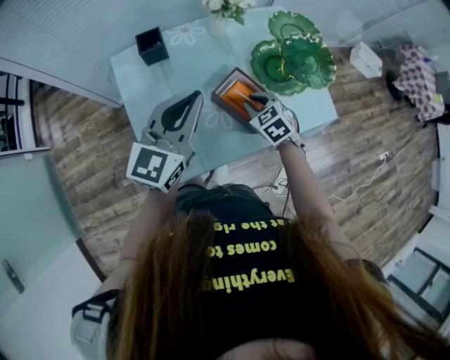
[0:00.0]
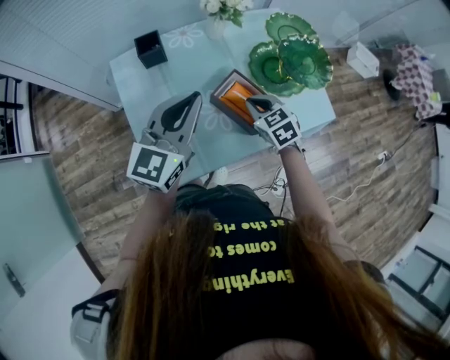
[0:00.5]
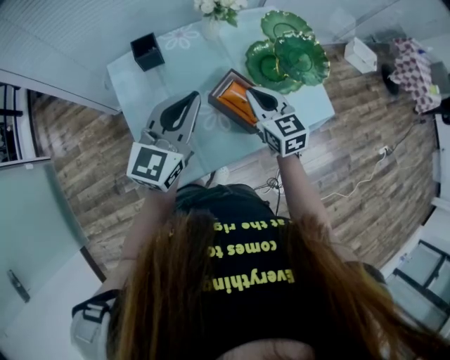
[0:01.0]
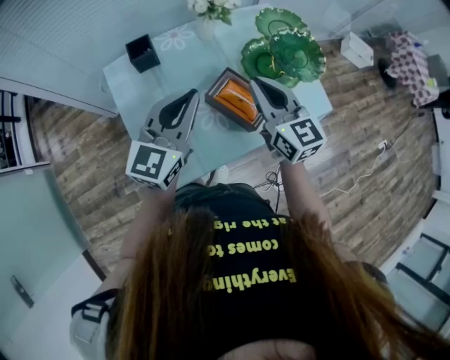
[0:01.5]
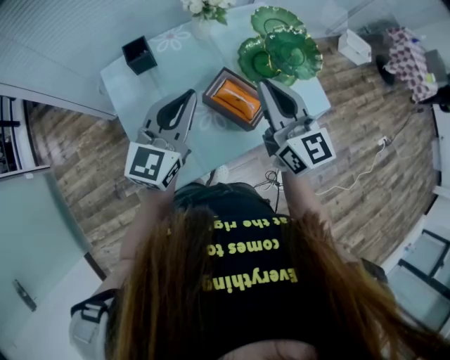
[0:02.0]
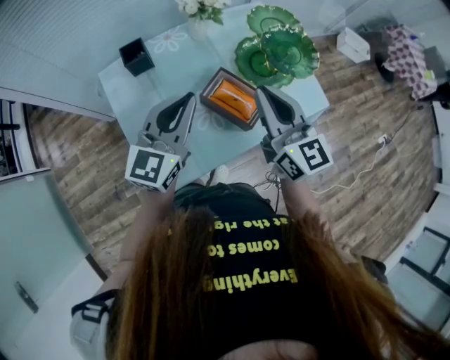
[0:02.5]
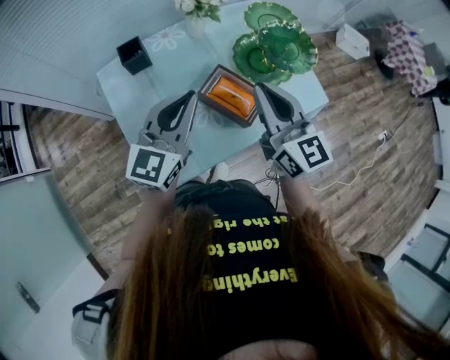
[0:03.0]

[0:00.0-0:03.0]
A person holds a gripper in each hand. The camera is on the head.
0:00.0 to 0:01.5: The right gripper is displaced upward by approximately 20 cm, and angles its fingers upward, by some 40 degrees.
0:01.5 to 0:03.0: The right gripper changes place by roughly 5 cm.

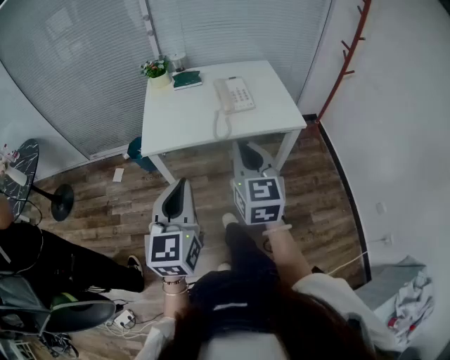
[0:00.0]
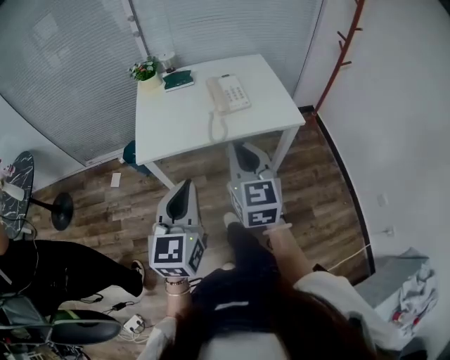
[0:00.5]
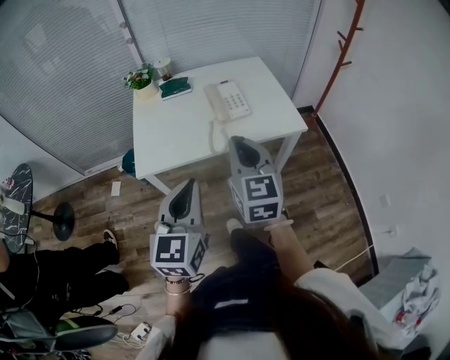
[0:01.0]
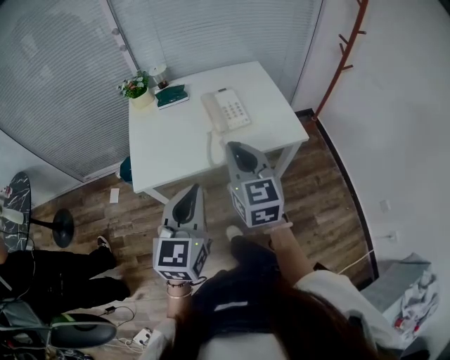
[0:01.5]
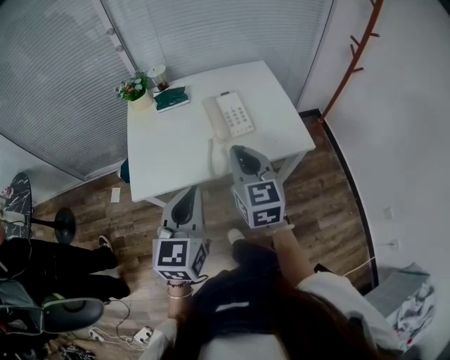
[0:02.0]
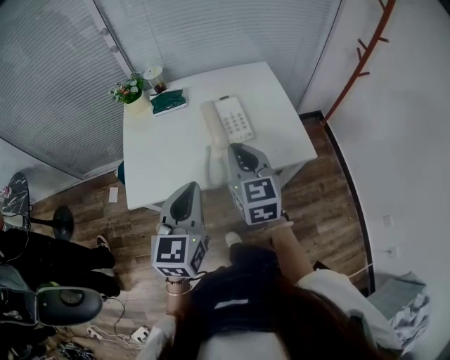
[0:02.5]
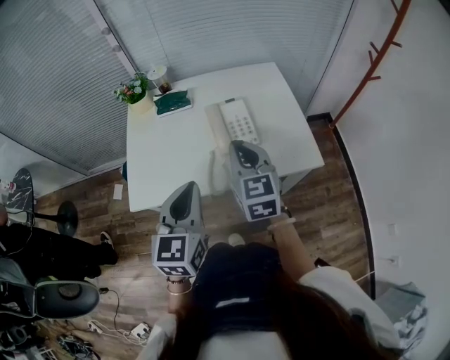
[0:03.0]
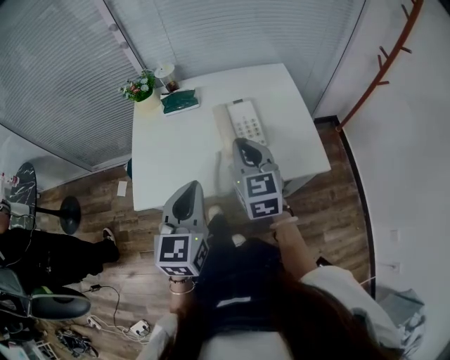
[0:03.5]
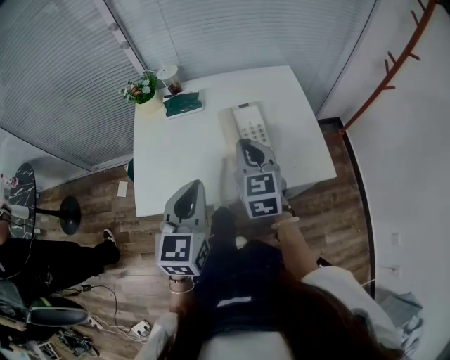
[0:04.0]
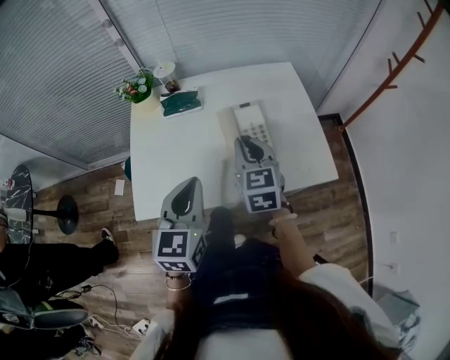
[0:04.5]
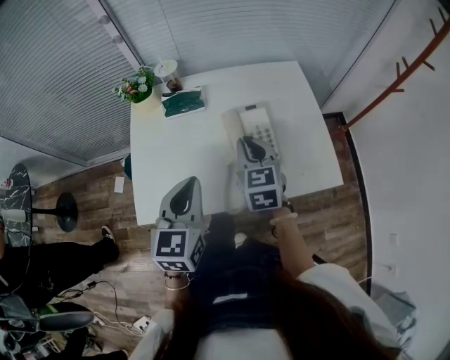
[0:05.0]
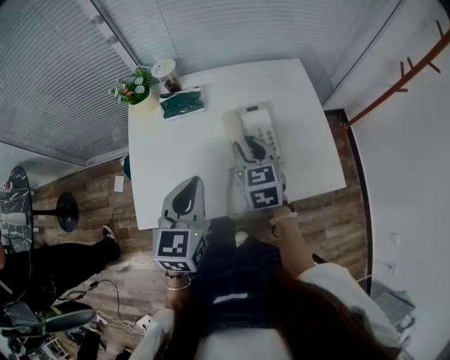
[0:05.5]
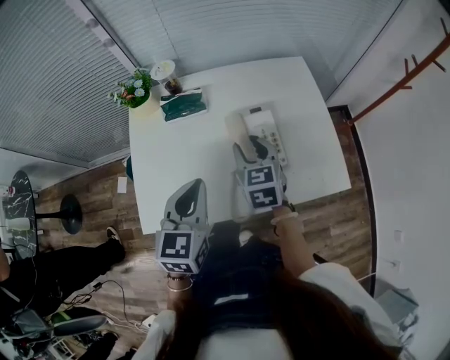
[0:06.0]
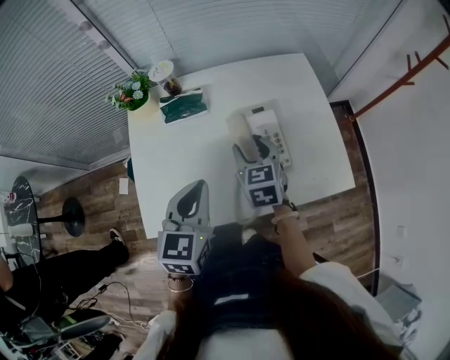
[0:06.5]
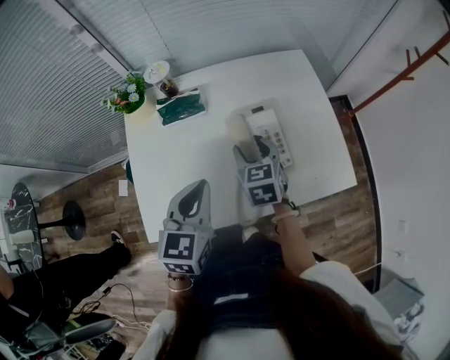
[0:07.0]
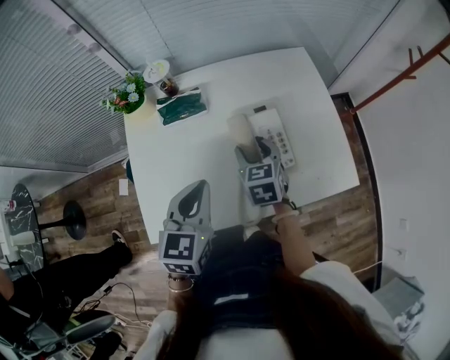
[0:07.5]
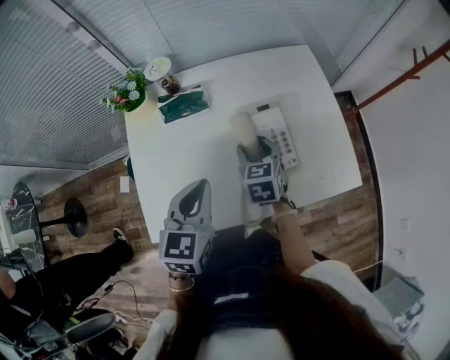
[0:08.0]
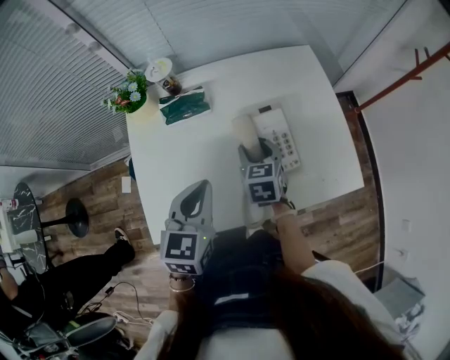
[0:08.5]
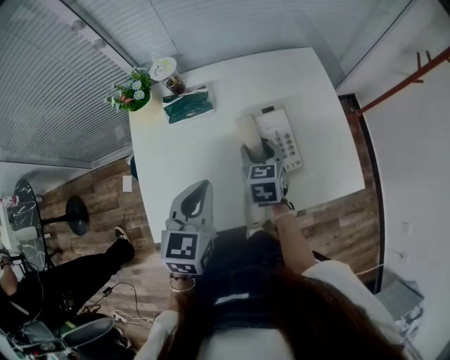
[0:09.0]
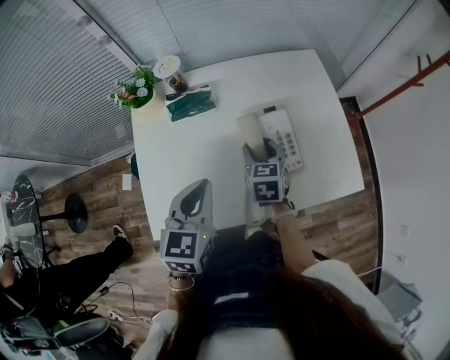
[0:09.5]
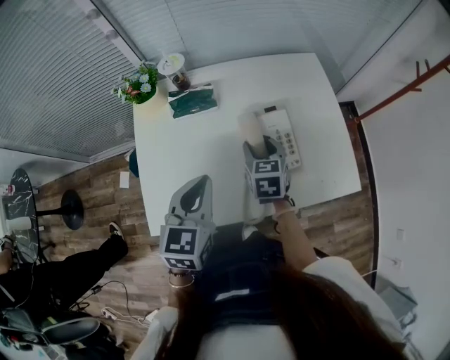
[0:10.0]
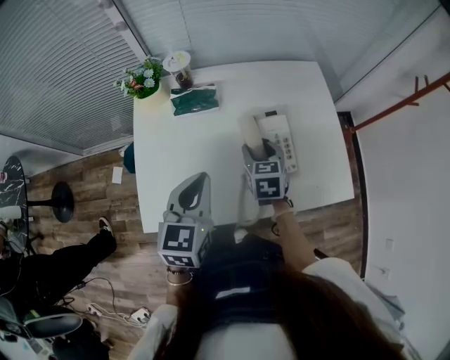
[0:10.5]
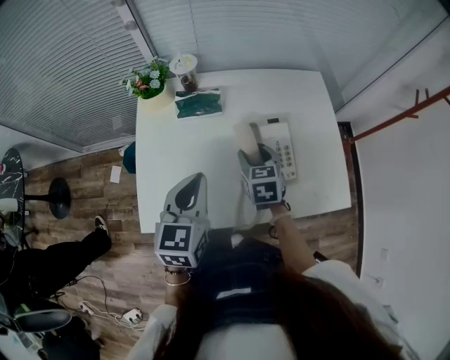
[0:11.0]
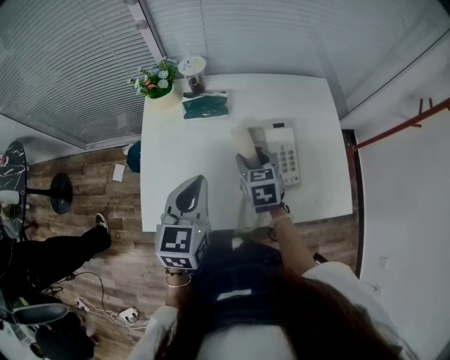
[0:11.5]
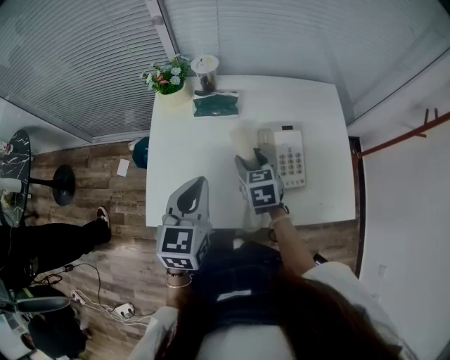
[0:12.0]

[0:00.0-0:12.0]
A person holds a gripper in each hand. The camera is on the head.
0:00.0 to 0:02.0: Both grippers travel together forward, approximately 20 cm.
0:02.0 to 0:04.0: The two grippers go some 15 cm forward.
0:04.0 to 0:06.0: The left gripper shifts about 10 cm forward. Meanwhile the right gripper shifts roughly 15 cm forward and downward, and opens up.
0:06.0 to 0:08.0: The right gripper is displaced downward by roughly 5 cm.
0:08.0 to 0:10.0: The grippers stay close to where they were, moving slightly.
0:10.0 to 0:12.0: The right gripper travels to the left by about 5 cm.

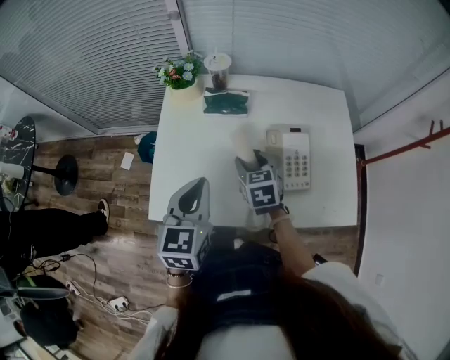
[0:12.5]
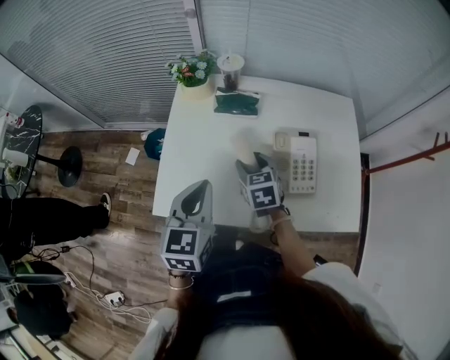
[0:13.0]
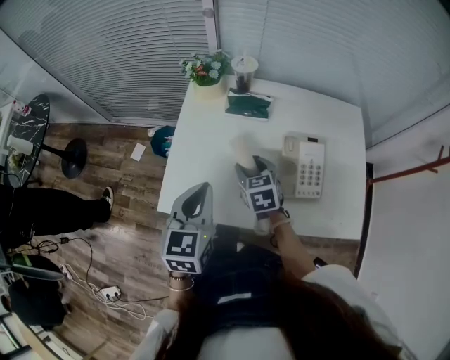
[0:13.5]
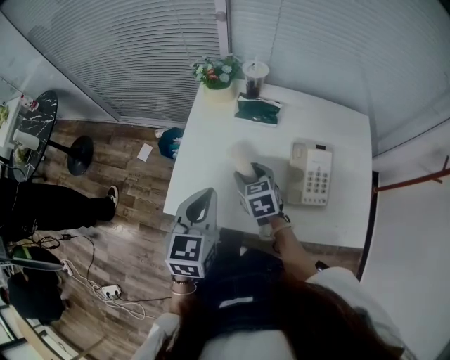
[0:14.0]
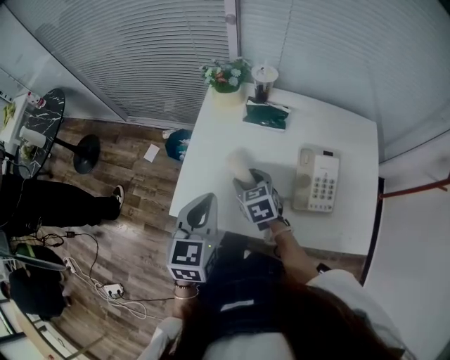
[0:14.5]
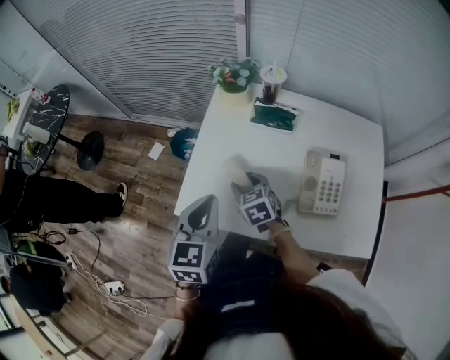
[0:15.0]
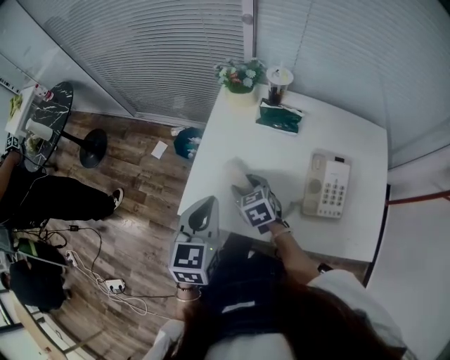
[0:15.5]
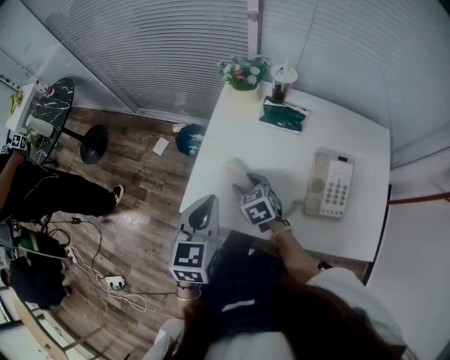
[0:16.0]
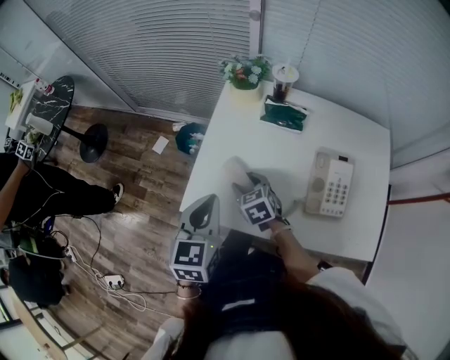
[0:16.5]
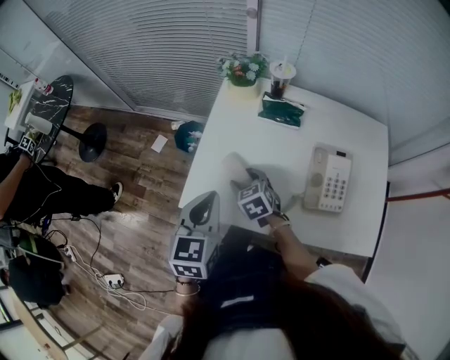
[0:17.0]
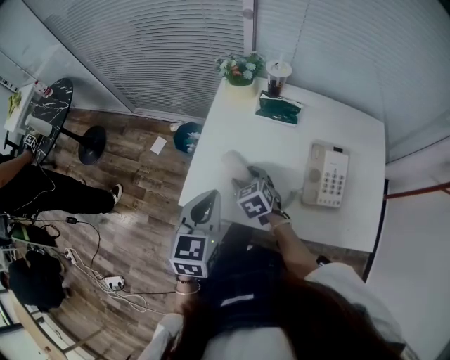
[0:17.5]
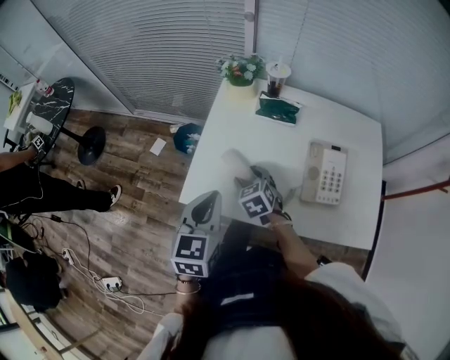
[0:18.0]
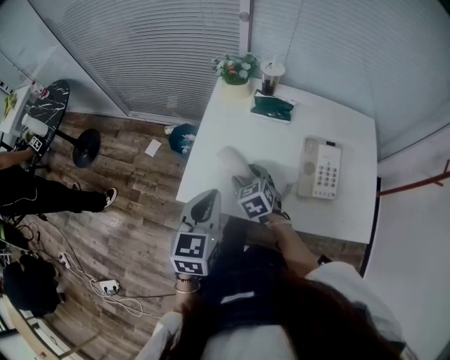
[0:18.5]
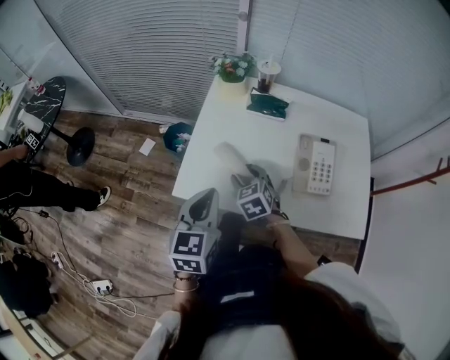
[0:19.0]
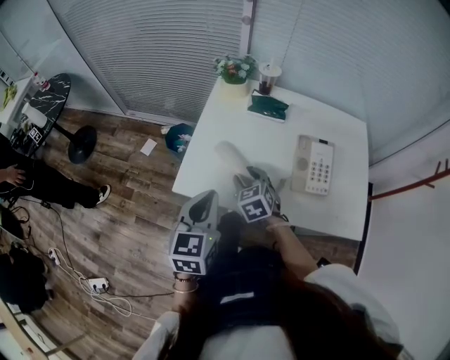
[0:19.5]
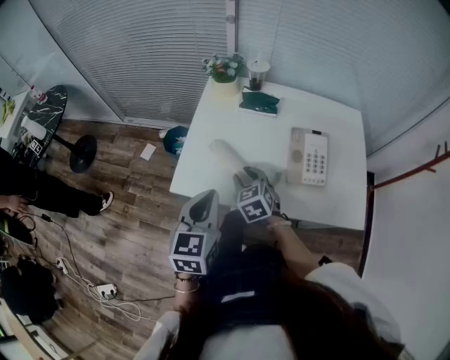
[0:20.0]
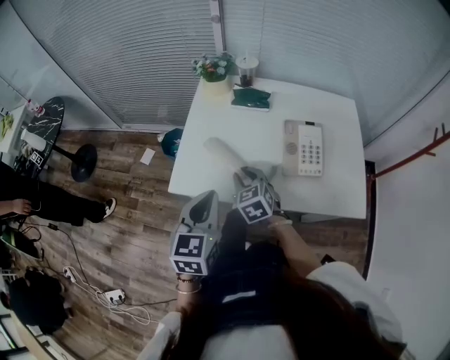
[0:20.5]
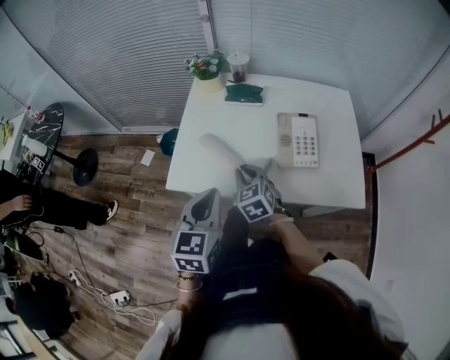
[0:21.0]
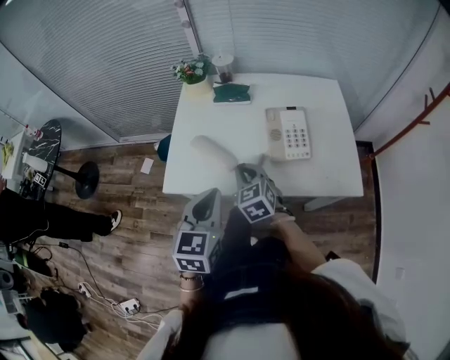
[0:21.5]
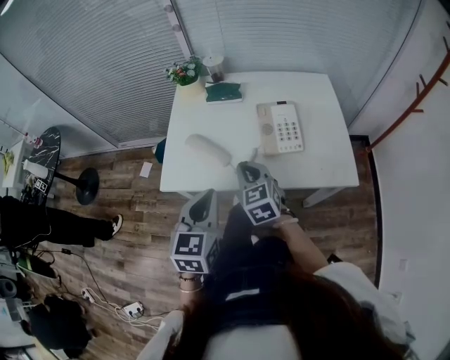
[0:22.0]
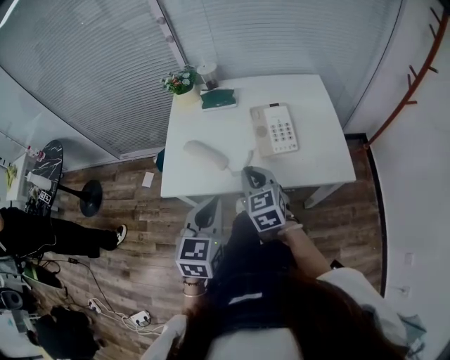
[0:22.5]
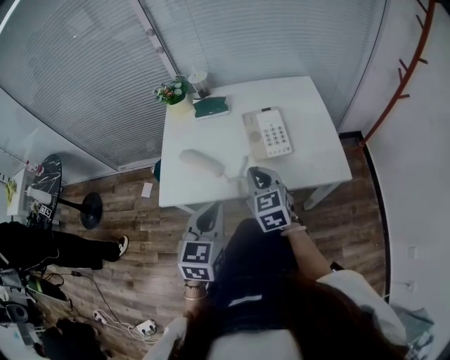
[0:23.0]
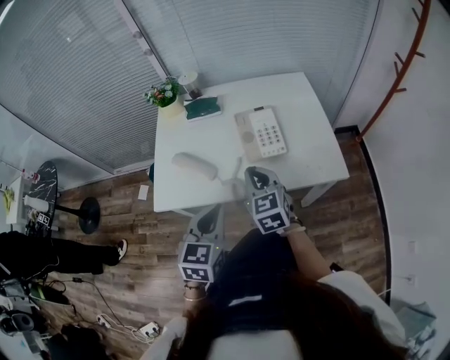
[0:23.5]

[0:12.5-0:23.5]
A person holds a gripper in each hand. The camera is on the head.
0:12.5 to 0:14.5: The left gripper is displaced to the left by approximately 5 cm, while the right gripper shifts some 10 cm to the left.
0:14.5 to 0:16.0: The right gripper travels to the left by about 5 cm.
0:16.0 to 0:18.0: The grippers make only small movements.
0:18.0 to 0:20.0: Both grippers travel together backward, about 5 cm. The right gripper closes.
0:20.0 to 0:21.5: Both grippers travel together to the right, roughly 5 cm. The right gripper closes up.
0:21.5 to 0:23.5: The left gripper shifts about 5 cm to the right; the right gripper heads to the right and upward, covering roughly 10 cm.

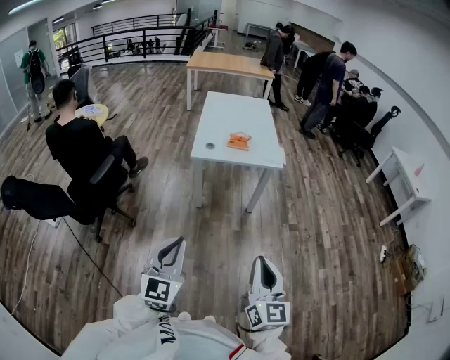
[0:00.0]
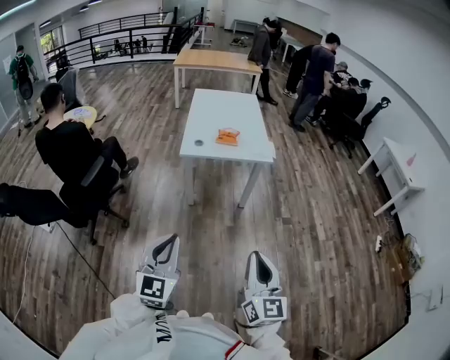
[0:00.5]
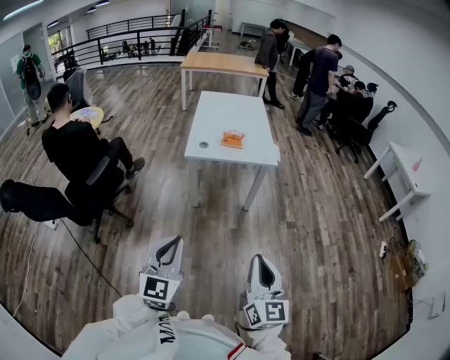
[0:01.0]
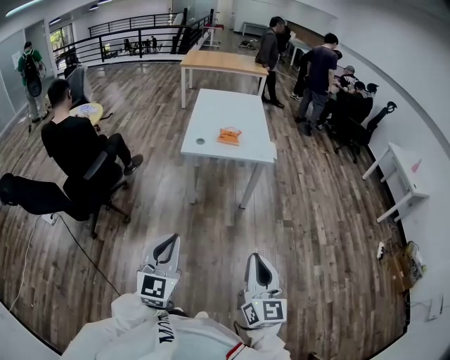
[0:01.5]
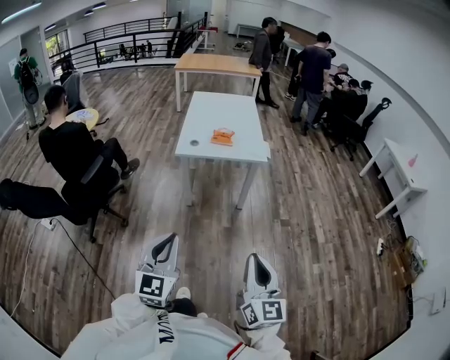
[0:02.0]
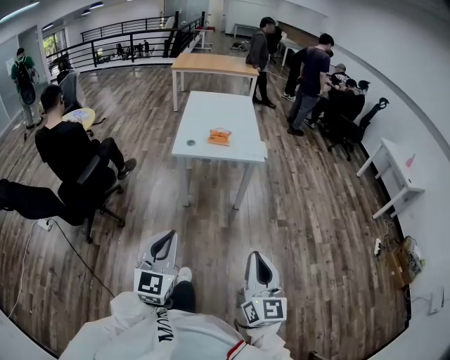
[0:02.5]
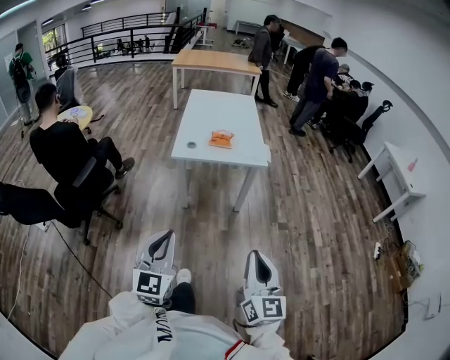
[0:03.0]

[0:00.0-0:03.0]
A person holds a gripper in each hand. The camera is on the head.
0:00.0 to 0:01.5: There are only small adjustments of the grippers.
0:01.5 to 0:03.0: The right gripper moves roughly 5 cm; the left gripper travels forward by roughly 5 cm.
